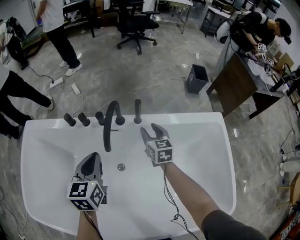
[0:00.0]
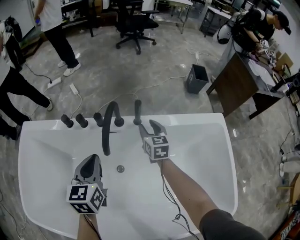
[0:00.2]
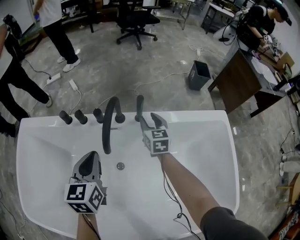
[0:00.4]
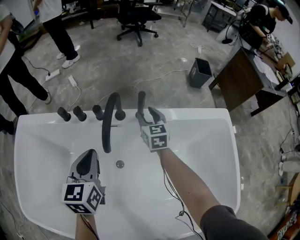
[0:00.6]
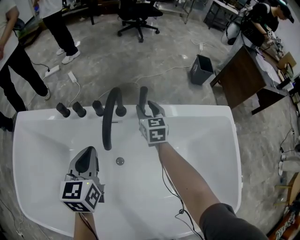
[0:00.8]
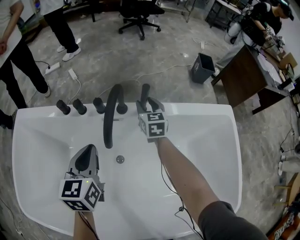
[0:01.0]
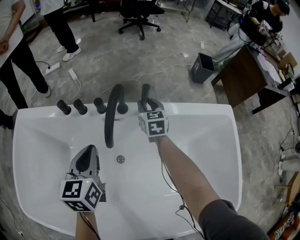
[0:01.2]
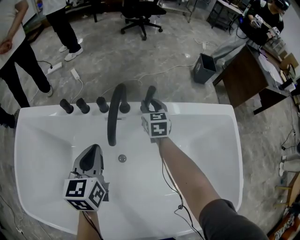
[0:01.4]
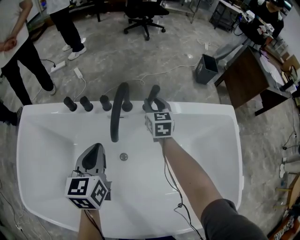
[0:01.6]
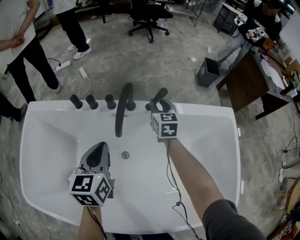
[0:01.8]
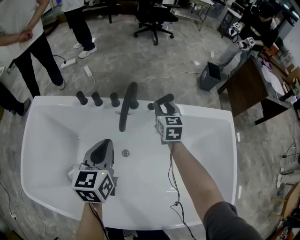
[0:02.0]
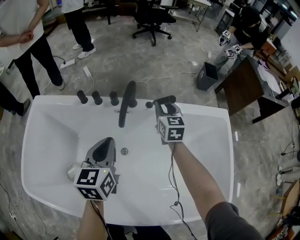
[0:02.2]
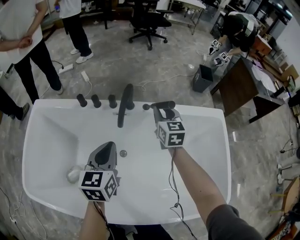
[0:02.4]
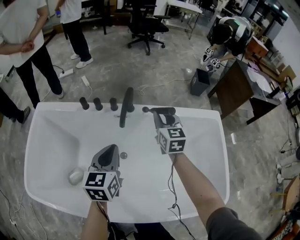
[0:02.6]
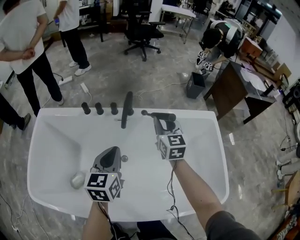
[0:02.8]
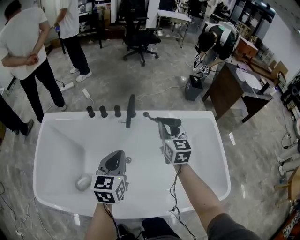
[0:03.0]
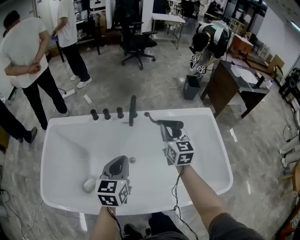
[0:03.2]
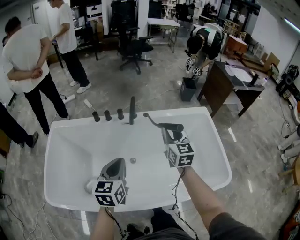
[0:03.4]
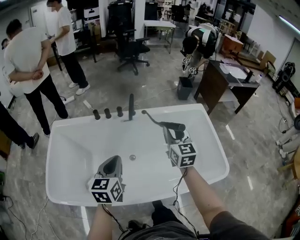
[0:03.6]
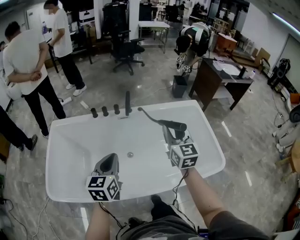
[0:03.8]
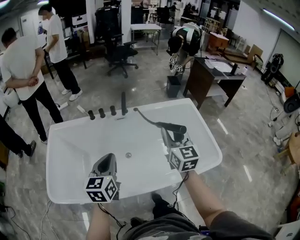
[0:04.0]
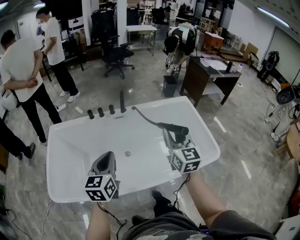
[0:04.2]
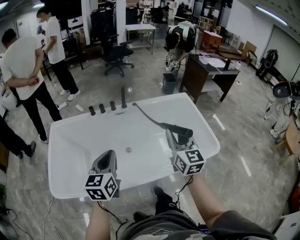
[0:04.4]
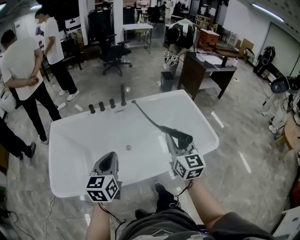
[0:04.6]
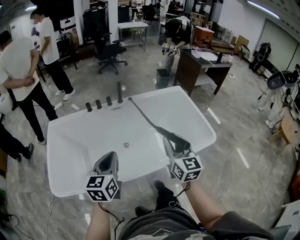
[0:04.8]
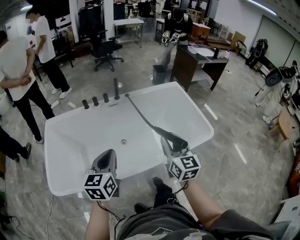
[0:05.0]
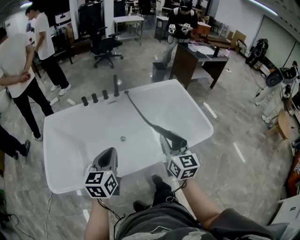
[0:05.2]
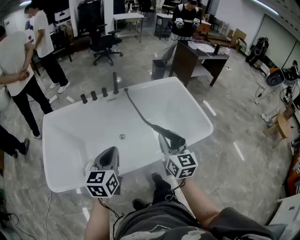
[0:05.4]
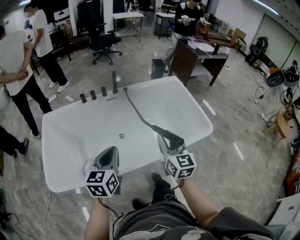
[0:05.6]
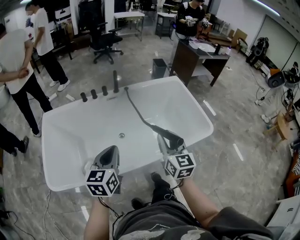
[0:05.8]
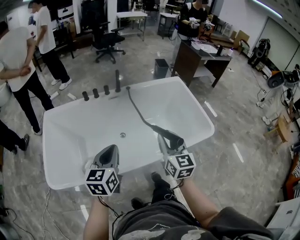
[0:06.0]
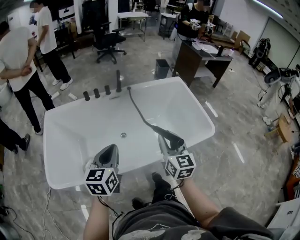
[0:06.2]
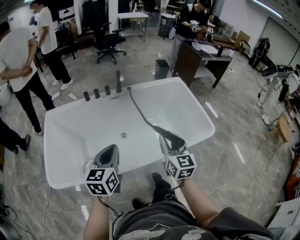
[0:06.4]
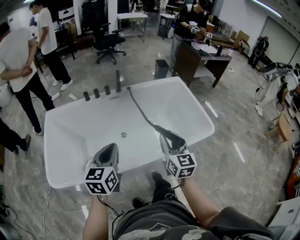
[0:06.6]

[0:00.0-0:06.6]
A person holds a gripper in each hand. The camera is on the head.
0.0 to 1.6 s: The right gripper travels forward by about 10 cm.
1.6 to 3.2 s: The two grippers go about 30 cm backward and upward.
3.2 to 5.0 s: The left gripper moves backward, about 30 cm. The right gripper shifts some 40 cm backward.
5.0 to 6.6 s: The grippers move only a little.

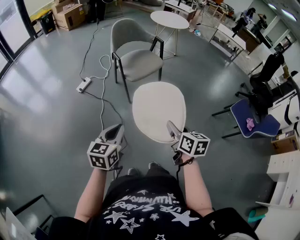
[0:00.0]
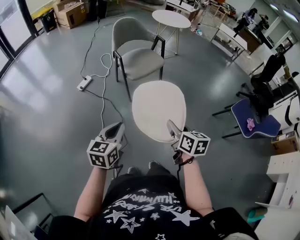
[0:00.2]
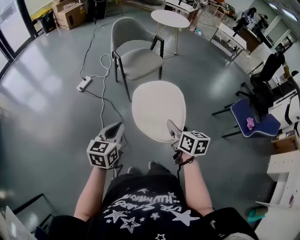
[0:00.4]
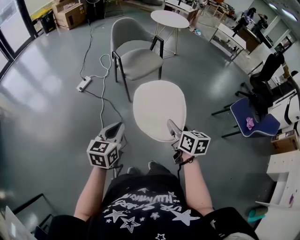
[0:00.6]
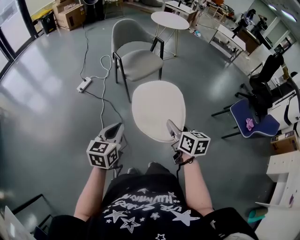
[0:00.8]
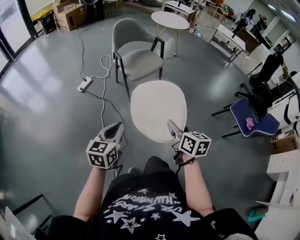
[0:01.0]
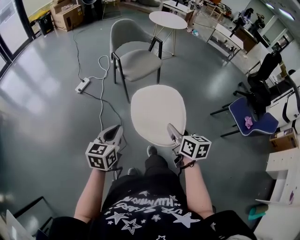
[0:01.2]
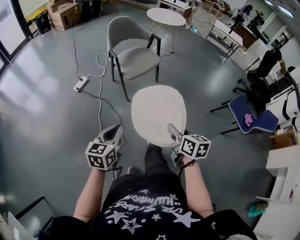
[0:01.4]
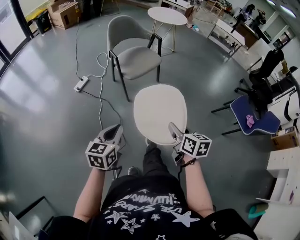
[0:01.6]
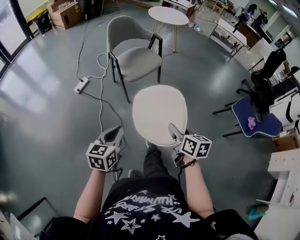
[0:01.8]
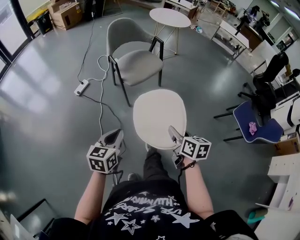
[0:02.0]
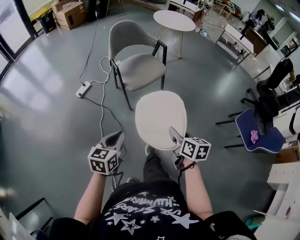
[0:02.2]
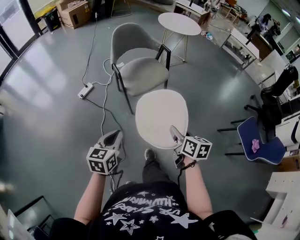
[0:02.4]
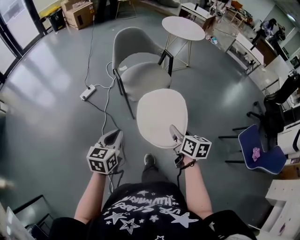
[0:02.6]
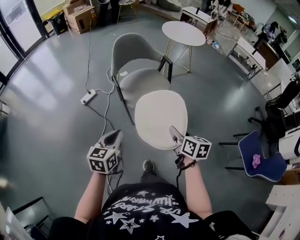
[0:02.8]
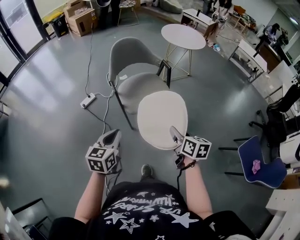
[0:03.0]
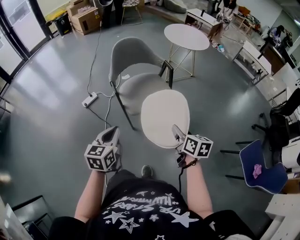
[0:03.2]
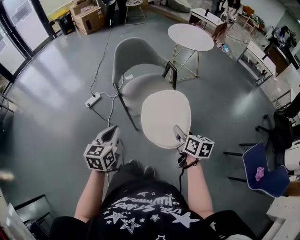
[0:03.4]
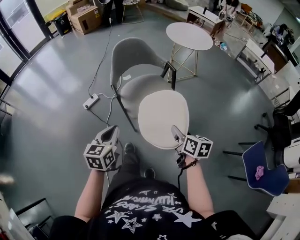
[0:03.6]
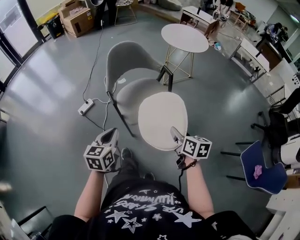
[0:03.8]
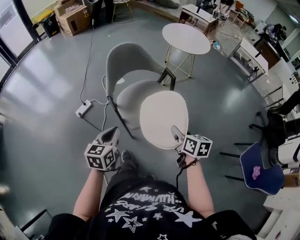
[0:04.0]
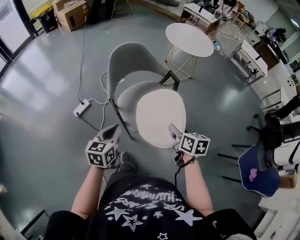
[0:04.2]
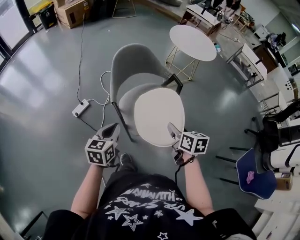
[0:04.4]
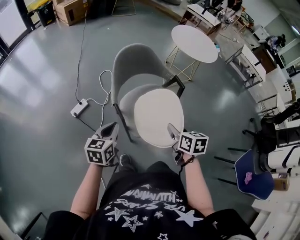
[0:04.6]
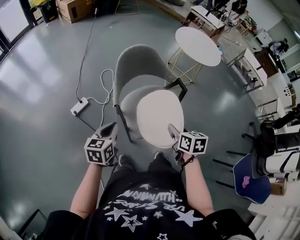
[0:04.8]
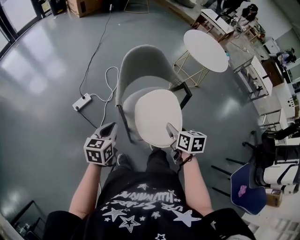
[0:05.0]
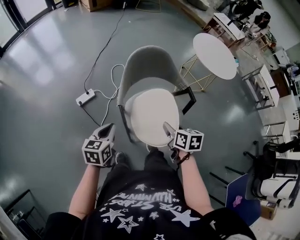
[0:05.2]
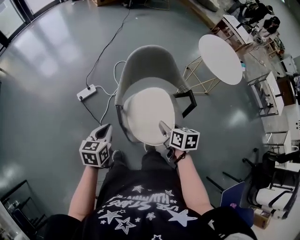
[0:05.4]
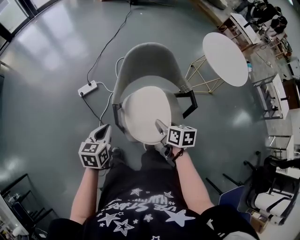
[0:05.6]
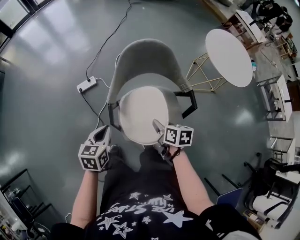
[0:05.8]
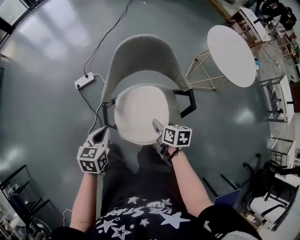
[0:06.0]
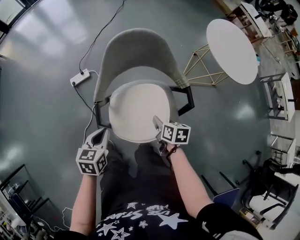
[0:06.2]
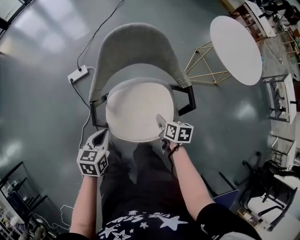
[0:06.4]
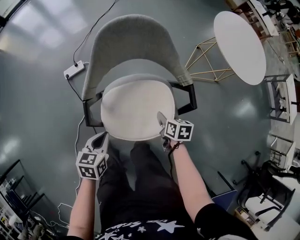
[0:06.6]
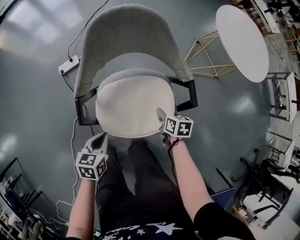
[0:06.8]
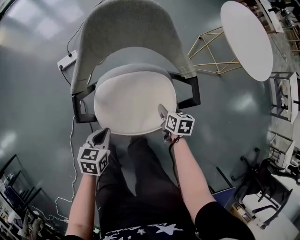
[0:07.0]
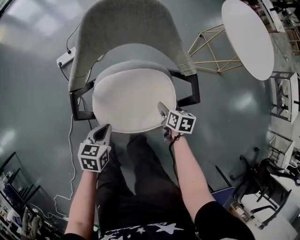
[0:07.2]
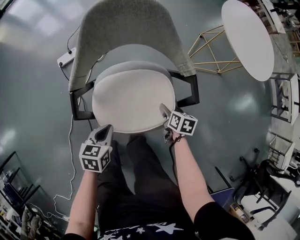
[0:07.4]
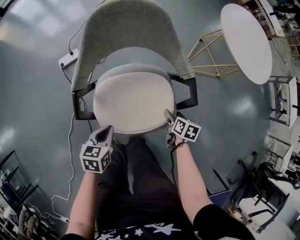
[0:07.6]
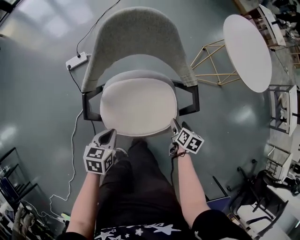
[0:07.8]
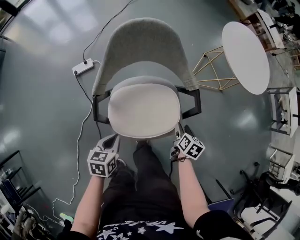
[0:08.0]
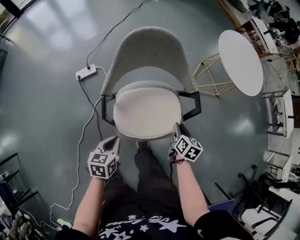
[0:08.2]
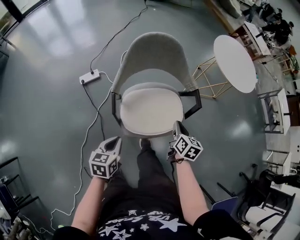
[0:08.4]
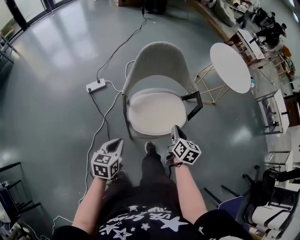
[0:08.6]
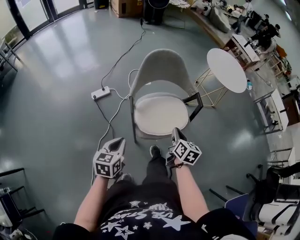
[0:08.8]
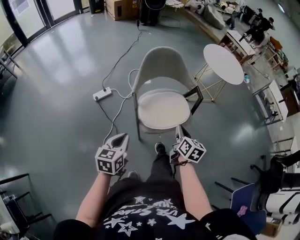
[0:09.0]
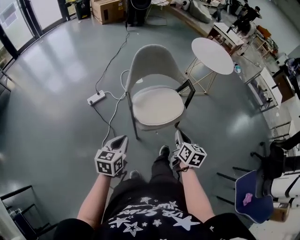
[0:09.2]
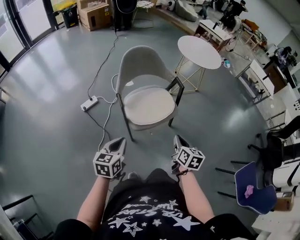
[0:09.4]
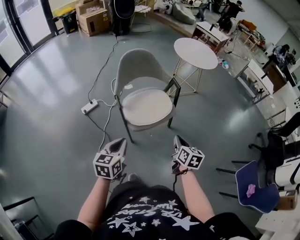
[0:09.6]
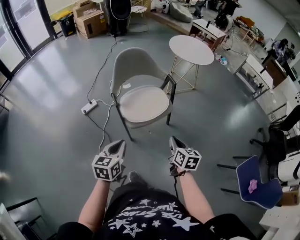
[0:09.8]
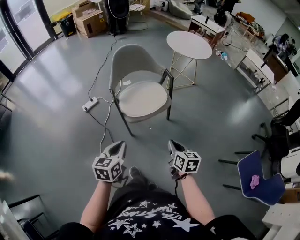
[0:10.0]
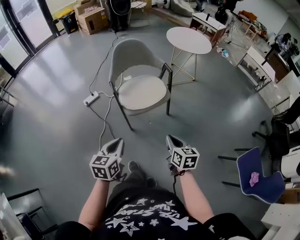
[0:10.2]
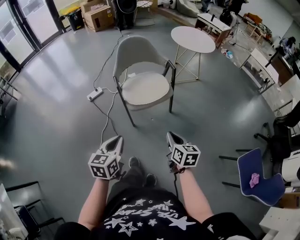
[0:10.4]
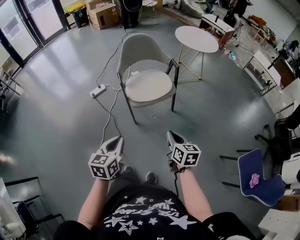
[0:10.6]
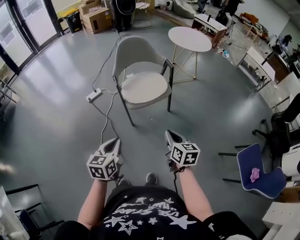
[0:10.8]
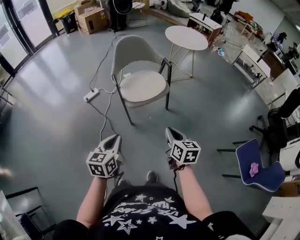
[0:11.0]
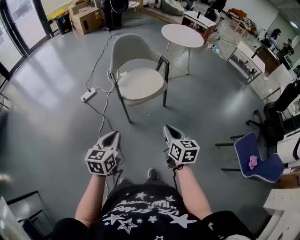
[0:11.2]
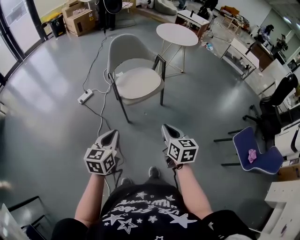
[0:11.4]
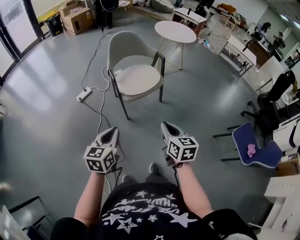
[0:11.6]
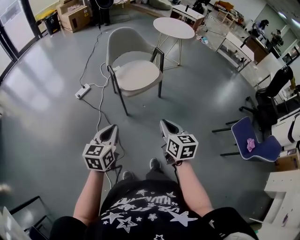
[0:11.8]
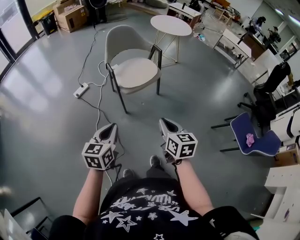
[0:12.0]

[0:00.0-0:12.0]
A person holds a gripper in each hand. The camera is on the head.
0.0 to 1.6 s: The grippers stay close to where they were, moving slightly.
1.6 to 3.0 s: Both grippers travel together forward, approximately 25 cm.
3.0 to 4.4 s: The two grippers go some 25 cm forward.
4.4 to 6.0 s: The left gripper changes place by about 10 cm, and rotates roughly 30 degrees. Meanwhile the right gripper ends up some 25 cm from where it was, and rotates some 30 degrees.
6.0 to 7.6 s: The two grippers go roughly 20 cm downward and to the right. The right gripper opens.
7.6 to 9.0 s: The two grippers go approximately 35 cm upward, backward and to the left. The right gripper swivels approximately 30 degrees, and closes; the left gripper turns by about 20 degrees.
9.0 to 10.4 s: Both grippers travel together backward and to the right, about 25 cm.
10.4 to 12.0 s: The right gripper heads backward, to the left and upward, covering about 20 cm. Meanwhile the left gripper heads to the left and backward, covering some 15 cm.

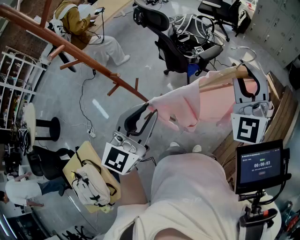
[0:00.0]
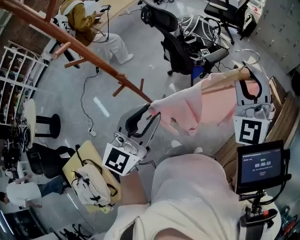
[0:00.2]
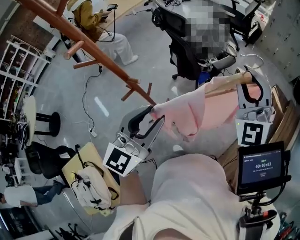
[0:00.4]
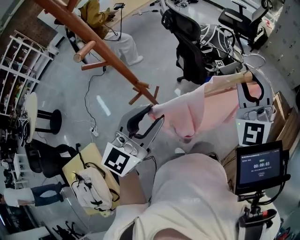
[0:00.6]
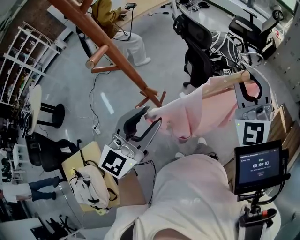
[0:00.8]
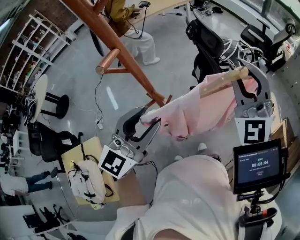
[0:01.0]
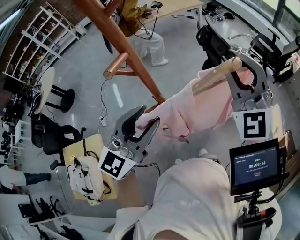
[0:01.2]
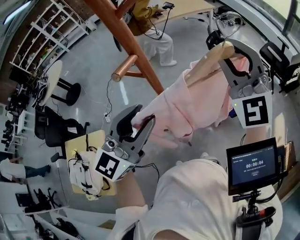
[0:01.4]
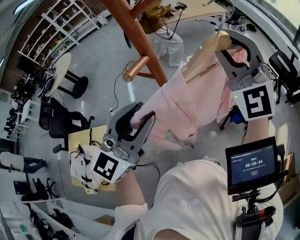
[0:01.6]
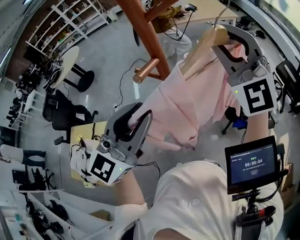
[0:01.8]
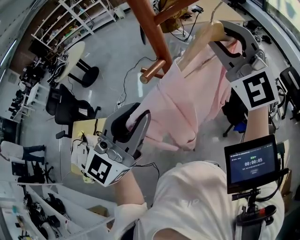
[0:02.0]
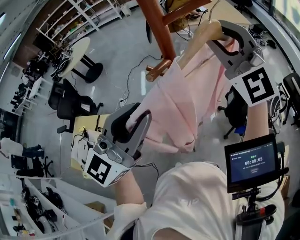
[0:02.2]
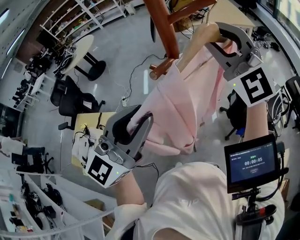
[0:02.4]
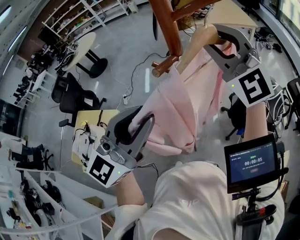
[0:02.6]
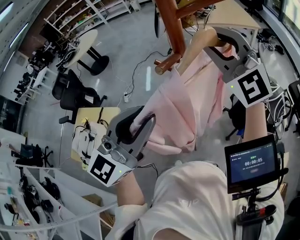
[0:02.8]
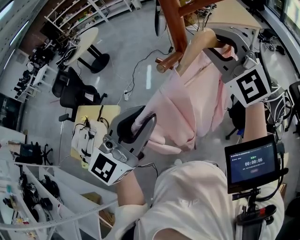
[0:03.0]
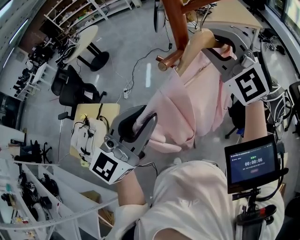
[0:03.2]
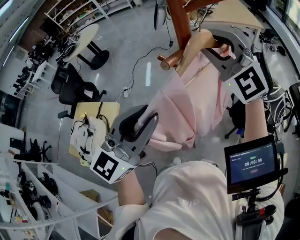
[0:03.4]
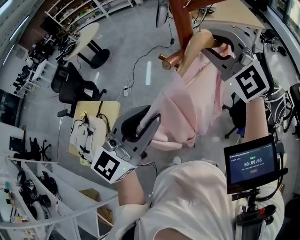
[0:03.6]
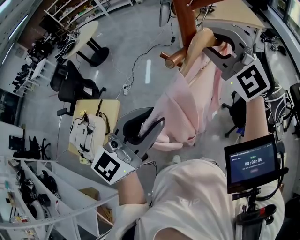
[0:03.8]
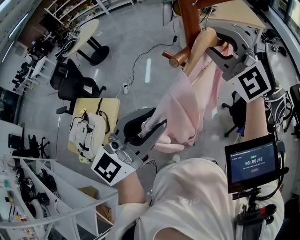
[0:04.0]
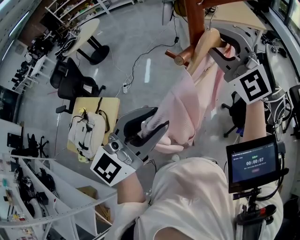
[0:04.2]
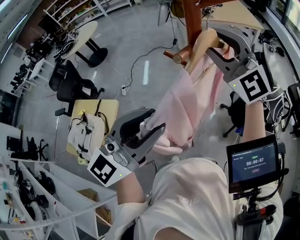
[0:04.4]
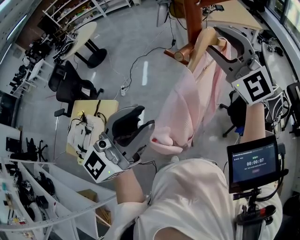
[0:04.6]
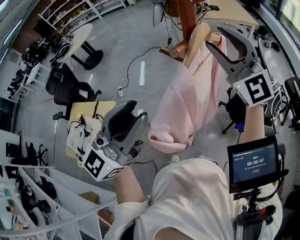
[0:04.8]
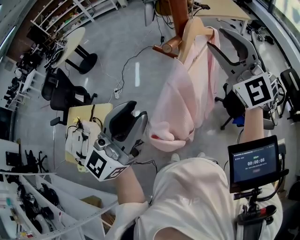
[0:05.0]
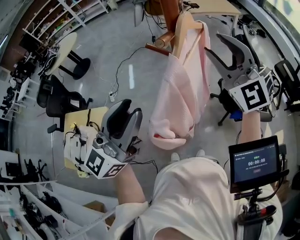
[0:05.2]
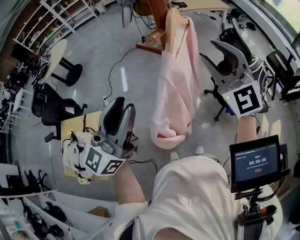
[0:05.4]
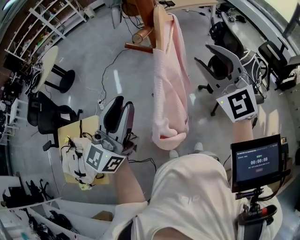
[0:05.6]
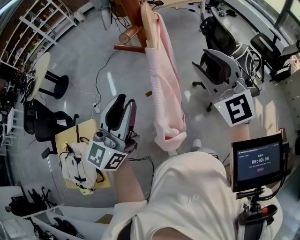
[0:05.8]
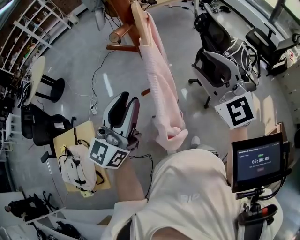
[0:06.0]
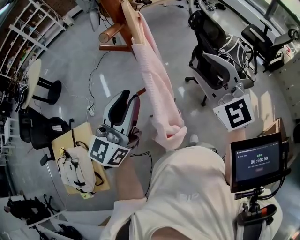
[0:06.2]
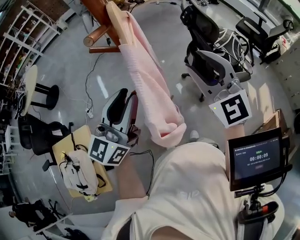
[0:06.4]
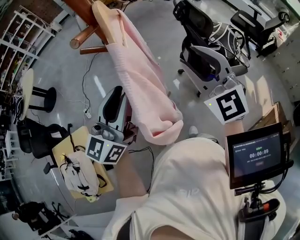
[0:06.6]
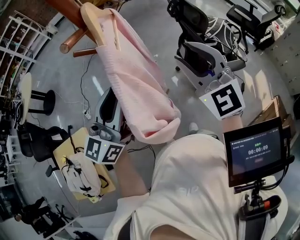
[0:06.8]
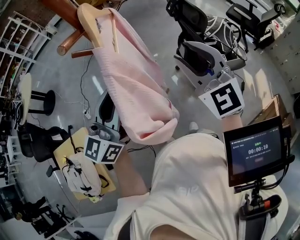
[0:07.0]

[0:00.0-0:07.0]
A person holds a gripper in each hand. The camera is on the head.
0.0 to 1.4 s: The left gripper changes place by about 25 cm, and swivels approximately 20 degrees. The right gripper shifts by roughly 40 cm, and rotates some 50 degrees.
1.4 to 2.8 s: The left gripper moves upward, about 5 cm. The right gripper is displaced to the left and forward by roughly 15 cm, and rotates about 30 degrees.
2.8 to 4.2 s: The right gripper moves approximately 5 cm.
4.2 to 5.6 s: The left gripper goes approximately 5 cm to the left, and changes its angle by some 20 degrees. The right gripper shifts some 15 cm backward, to the right and downward, and rotates approximately 30 degrees.
5.6 to 7.0 s: The left gripper travels to the right, downward and forward by some 10 cm; the right gripper moves downward and to the right, some 10 cm.
